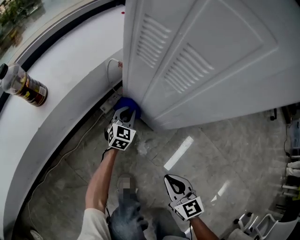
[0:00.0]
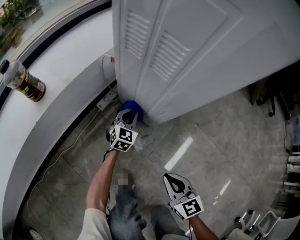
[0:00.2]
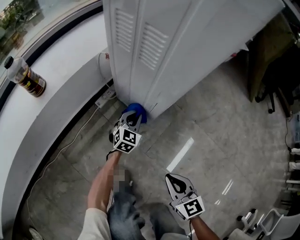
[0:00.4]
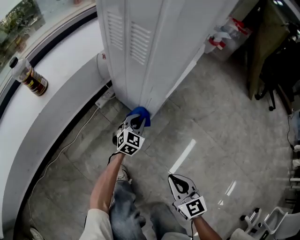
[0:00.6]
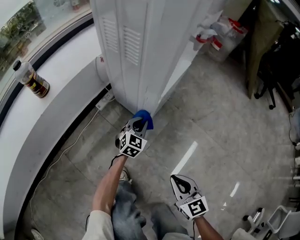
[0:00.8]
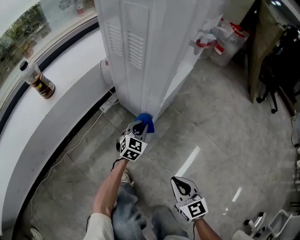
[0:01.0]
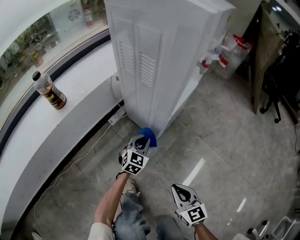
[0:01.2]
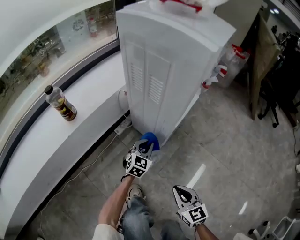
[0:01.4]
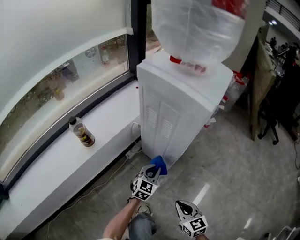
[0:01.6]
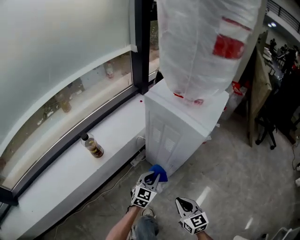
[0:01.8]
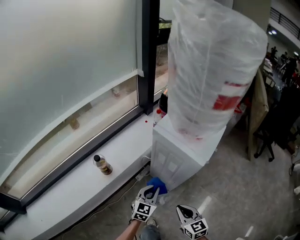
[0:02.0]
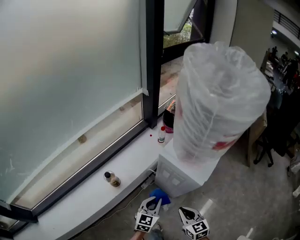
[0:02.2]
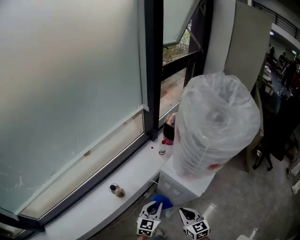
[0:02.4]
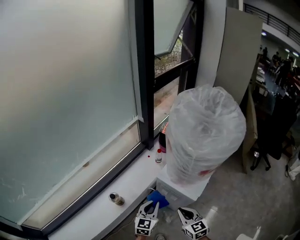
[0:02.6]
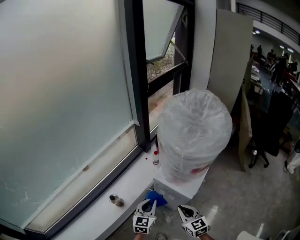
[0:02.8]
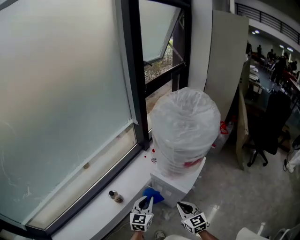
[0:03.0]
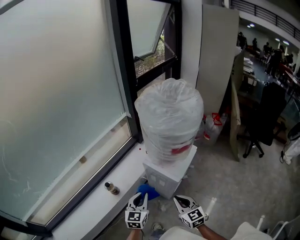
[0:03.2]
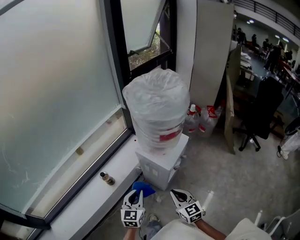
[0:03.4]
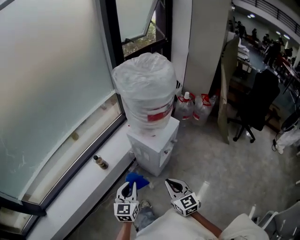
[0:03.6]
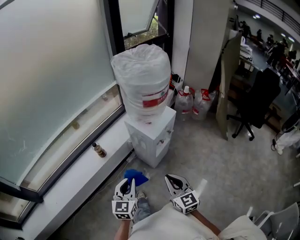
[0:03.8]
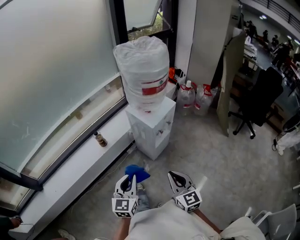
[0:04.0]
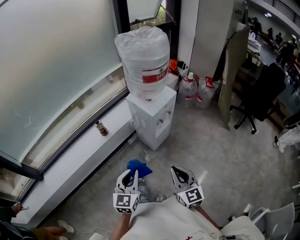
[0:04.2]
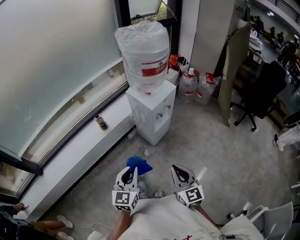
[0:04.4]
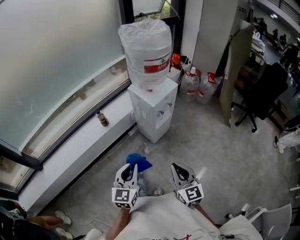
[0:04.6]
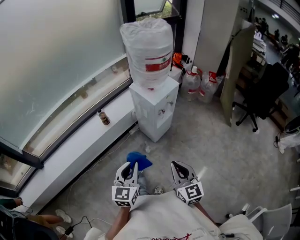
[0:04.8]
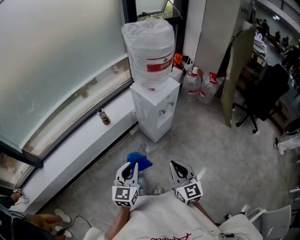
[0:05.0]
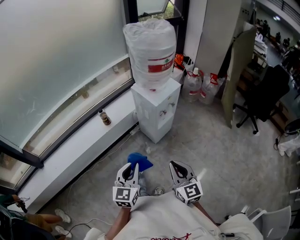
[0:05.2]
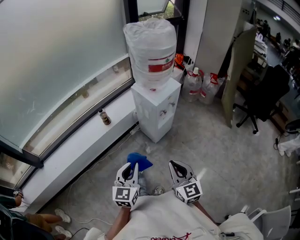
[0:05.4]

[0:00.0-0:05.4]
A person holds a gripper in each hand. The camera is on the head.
0:00.0 to 0:01.4: The left gripper is displaced backward, upward and to the right by roughly 20 cm; the right gripper shifts about 10 cm backward and upward.
0:01.4 to 0:02.8: The right gripper is displaced upward and forward by approximately 50 cm. Meanwhile the left gripper is displaced upward by some 60 cm, and turns by some 20 degrees.
0:02.8 to 0:04.0: The left gripper is displaced backward by some 35 cm. Meanwhile the right gripper is displaced backward and to the right by some 35 cm.
0:04.0 to 0:05.4: The two grippers go roughly 5 cm backward.

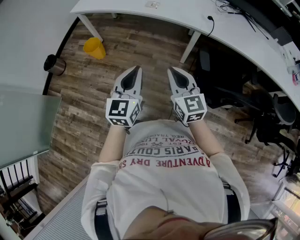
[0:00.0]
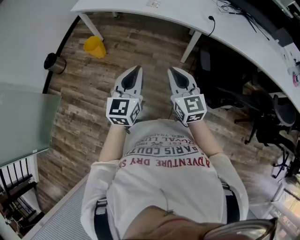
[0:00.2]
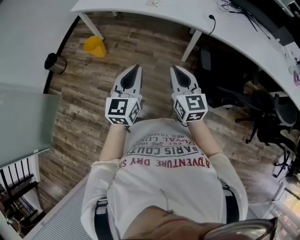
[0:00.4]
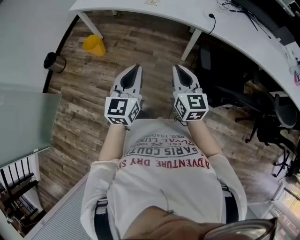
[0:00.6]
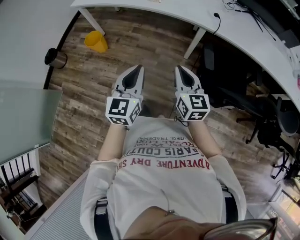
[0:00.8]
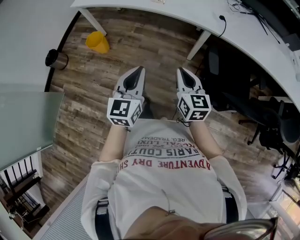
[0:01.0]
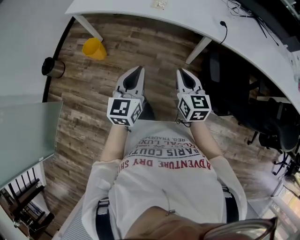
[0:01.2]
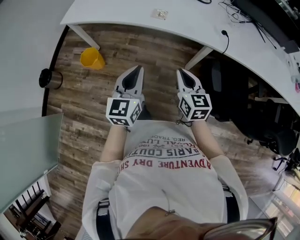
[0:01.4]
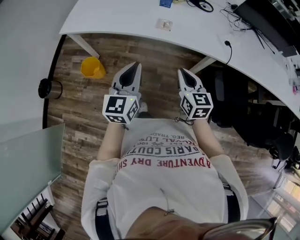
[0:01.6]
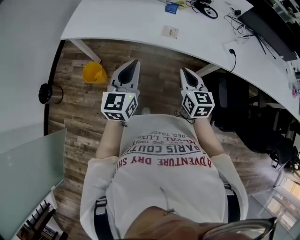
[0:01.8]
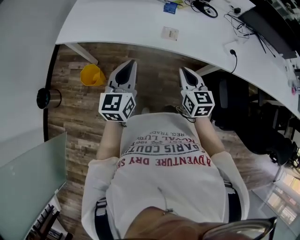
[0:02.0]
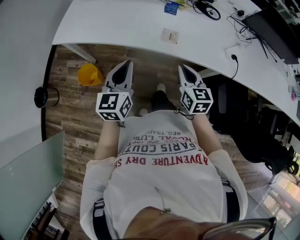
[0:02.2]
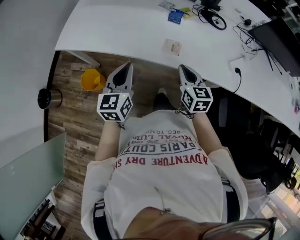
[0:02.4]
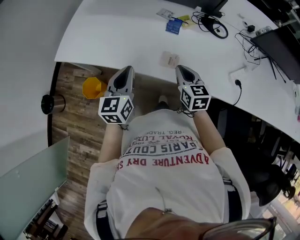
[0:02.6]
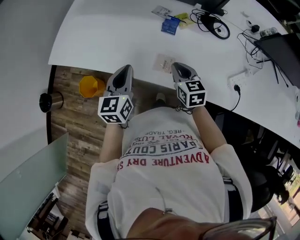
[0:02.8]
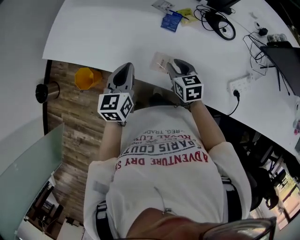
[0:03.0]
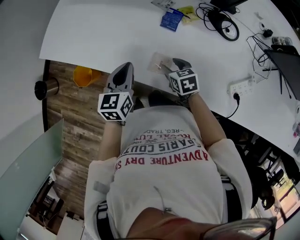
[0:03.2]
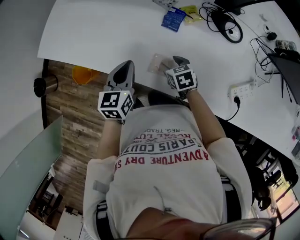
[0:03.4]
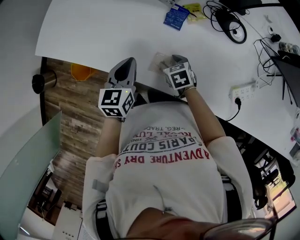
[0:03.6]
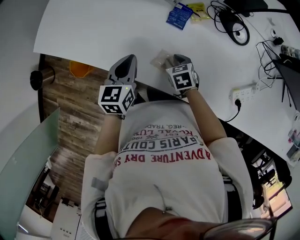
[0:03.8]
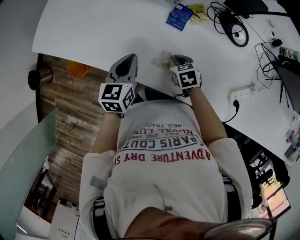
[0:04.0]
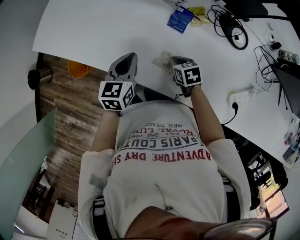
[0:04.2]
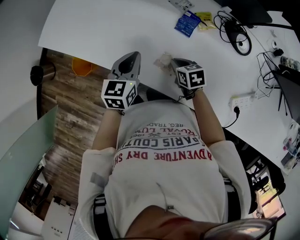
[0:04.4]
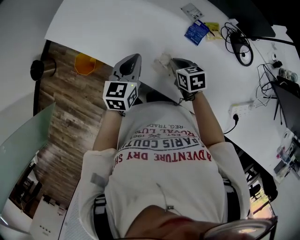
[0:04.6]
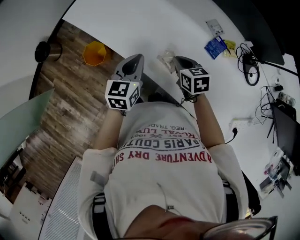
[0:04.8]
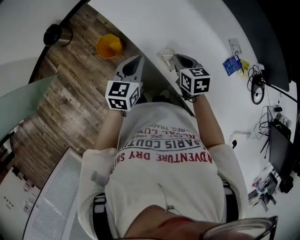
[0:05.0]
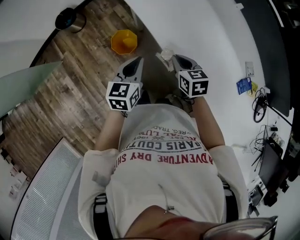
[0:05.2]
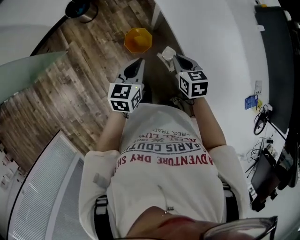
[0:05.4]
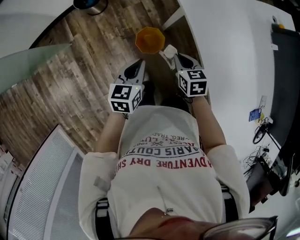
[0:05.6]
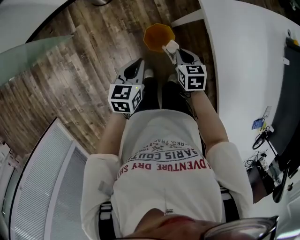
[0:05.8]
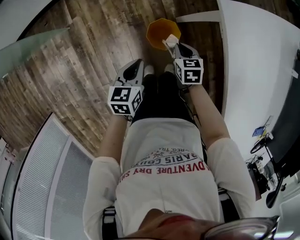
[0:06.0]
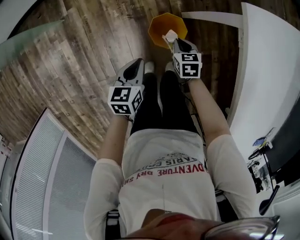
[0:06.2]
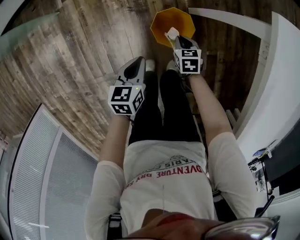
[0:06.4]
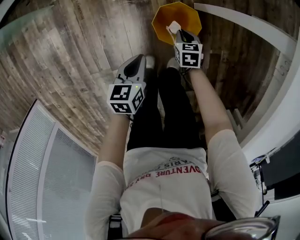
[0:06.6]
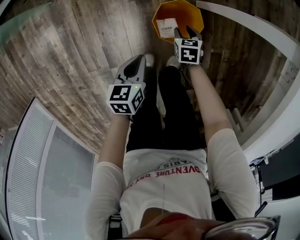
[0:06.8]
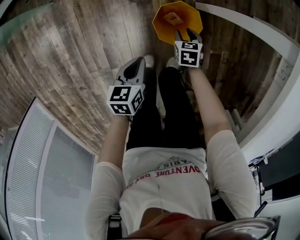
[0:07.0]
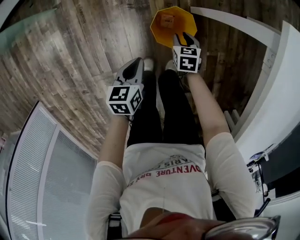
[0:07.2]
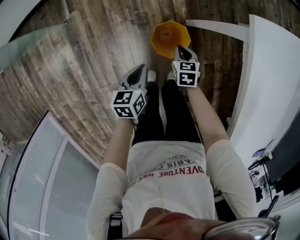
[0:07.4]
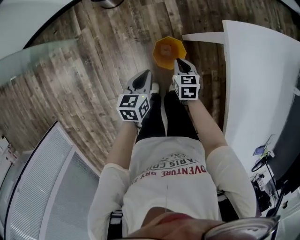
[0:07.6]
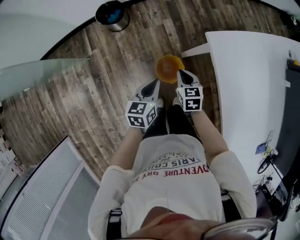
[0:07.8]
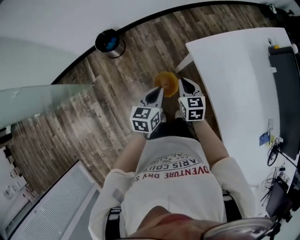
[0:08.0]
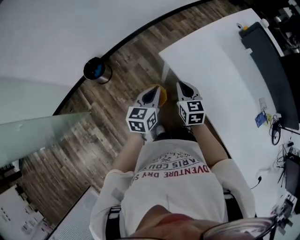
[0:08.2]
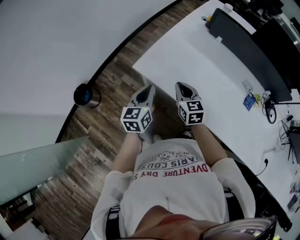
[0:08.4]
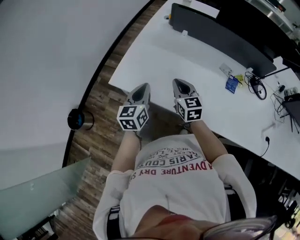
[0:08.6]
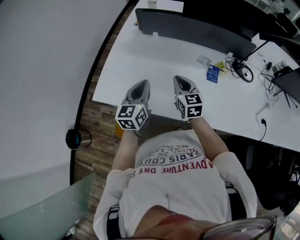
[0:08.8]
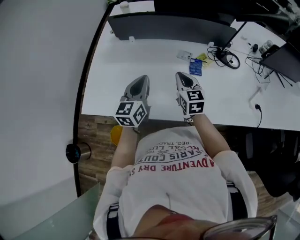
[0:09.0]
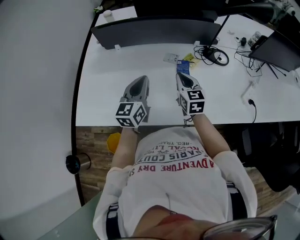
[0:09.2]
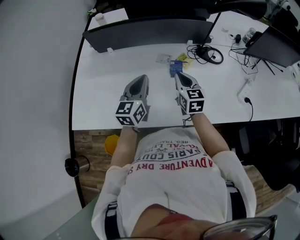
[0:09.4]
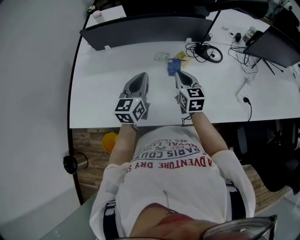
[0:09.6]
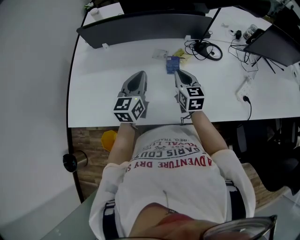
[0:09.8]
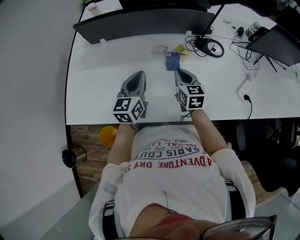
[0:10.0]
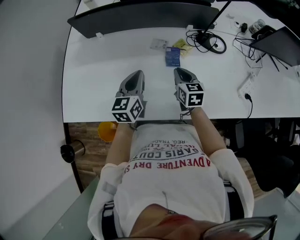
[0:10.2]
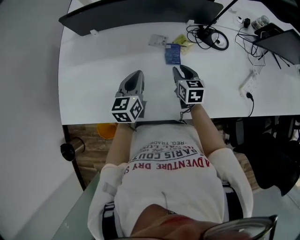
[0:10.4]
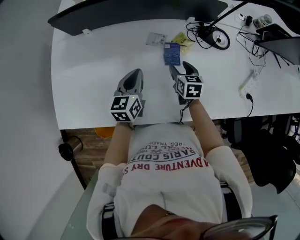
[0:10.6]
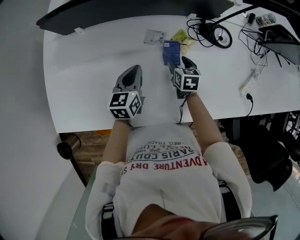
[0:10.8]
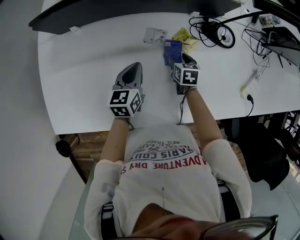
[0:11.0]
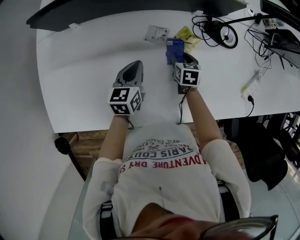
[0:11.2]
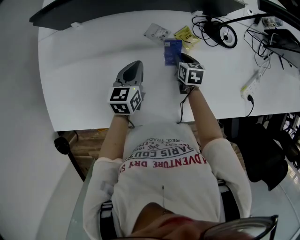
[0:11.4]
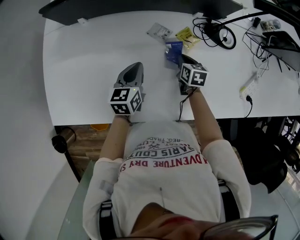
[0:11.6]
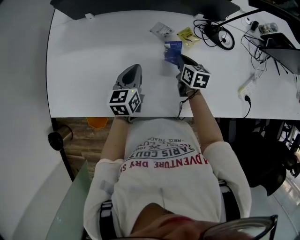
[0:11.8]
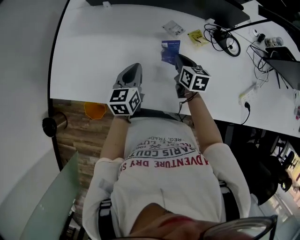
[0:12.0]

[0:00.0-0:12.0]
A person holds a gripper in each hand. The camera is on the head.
0:00.0 to 0:01.6: The right gripper is displaced forward by some 30 cm, and changes its angle by roughly 20 degrees; the left gripper travels forward and to the left by approximately 35 cm.
0:01.6 to 0:03.0: The two grippers go approximately 40 cm forward. The left gripper rotates approximately 20 degrees. Meanwhile the right gripper turns by approximately 30 degrees.
0:03.0 to 0:04.4: The right gripper is displaced downward and forward by some 10 cm, rotates roughly 20 degrees, and opens and closes again. Meanwhile the left gripper moves forward and downward, some 10 cm.
0:04.4 to 0:06.0: Both grippers are carried roughly 70 cm. The right gripper rolls counterclockwise, seen from behind, by some 40 degrees; the left gripper rotates some 50 degrees.
0:06.0 to 0:07.6: The left gripper travels downward and back again, approximately 25 cm each way; the right gripper goes downward and returns, roughly 35 cm each way, and opens, then closes once more.
0:07.6 to 0:09.0: Both grippers are carried about 60 cm. The left gripper tilts its fingers approximately 30 degrees upward. Meanwhile the right gripper tilts its fingers roughly 40 degrees upward.
0:09.0 to 0:10.4: The grippers both shift to the right, downward and forward by approximately 20 cm. The right gripper swivels some 20 degrees.
0:10.4 to 0:12.0: Both grippers travel together to the left, approximately 5 cm. The right gripper moves some 15 cm downward and comes back, and opens, then closes again; the left gripper travels forward and back again, roughly 10 cm each way.

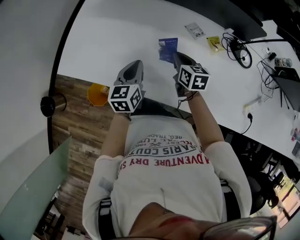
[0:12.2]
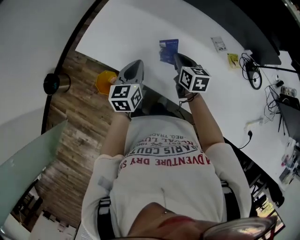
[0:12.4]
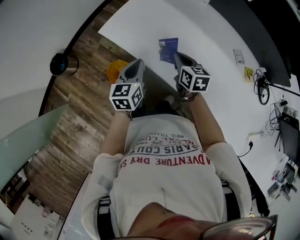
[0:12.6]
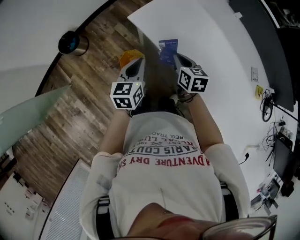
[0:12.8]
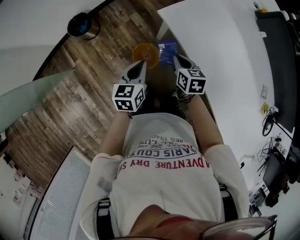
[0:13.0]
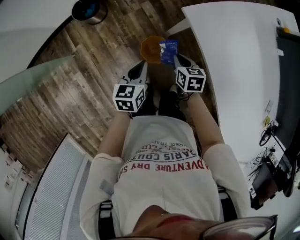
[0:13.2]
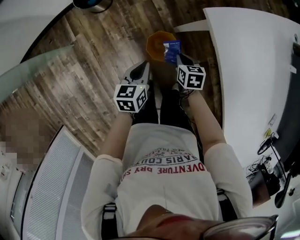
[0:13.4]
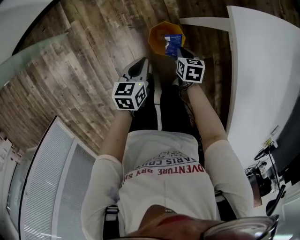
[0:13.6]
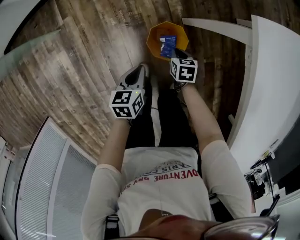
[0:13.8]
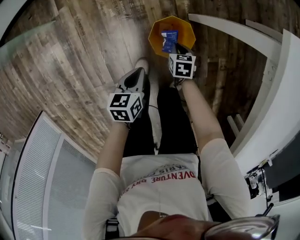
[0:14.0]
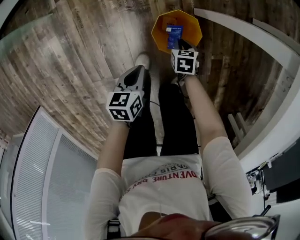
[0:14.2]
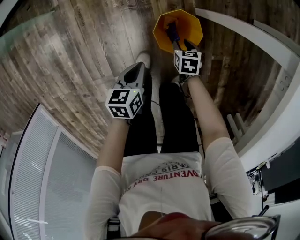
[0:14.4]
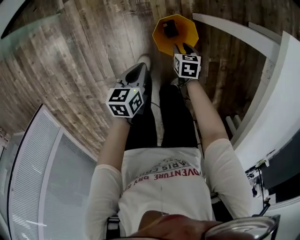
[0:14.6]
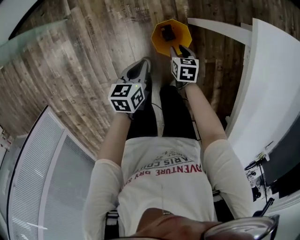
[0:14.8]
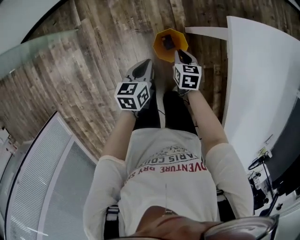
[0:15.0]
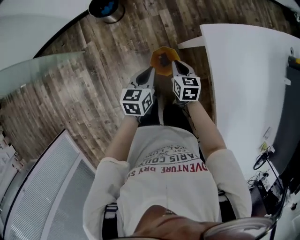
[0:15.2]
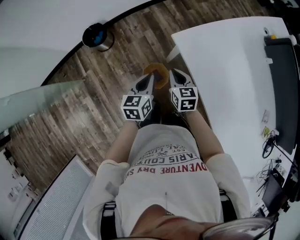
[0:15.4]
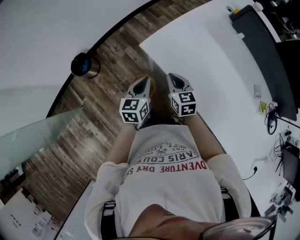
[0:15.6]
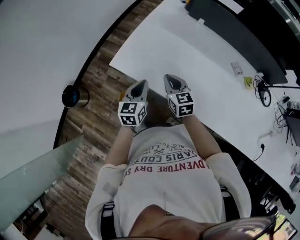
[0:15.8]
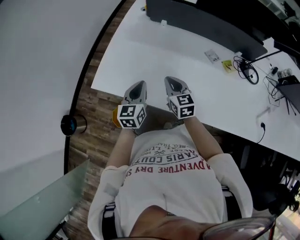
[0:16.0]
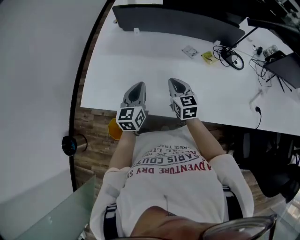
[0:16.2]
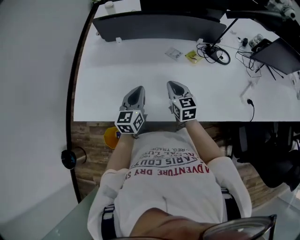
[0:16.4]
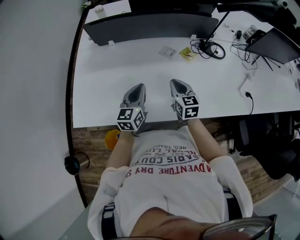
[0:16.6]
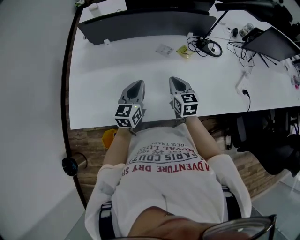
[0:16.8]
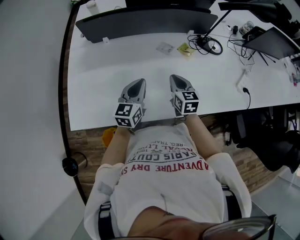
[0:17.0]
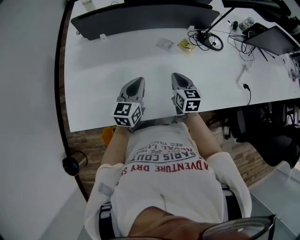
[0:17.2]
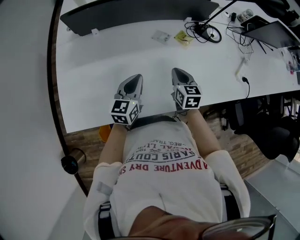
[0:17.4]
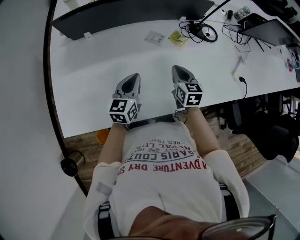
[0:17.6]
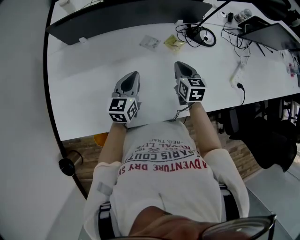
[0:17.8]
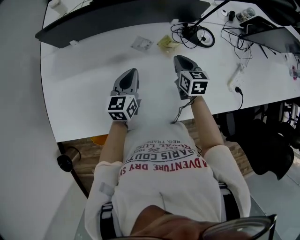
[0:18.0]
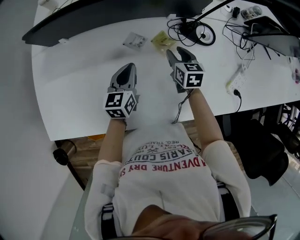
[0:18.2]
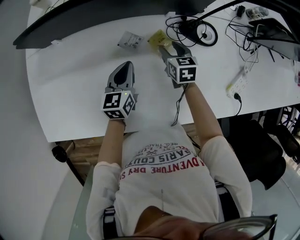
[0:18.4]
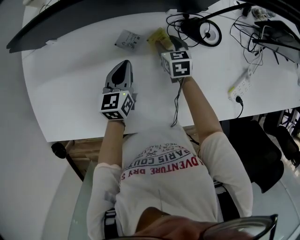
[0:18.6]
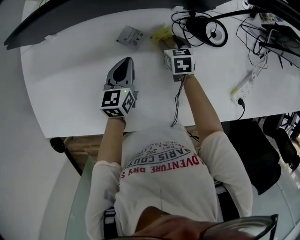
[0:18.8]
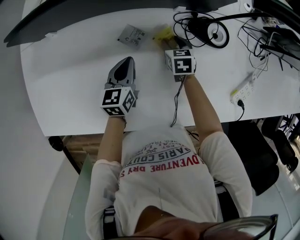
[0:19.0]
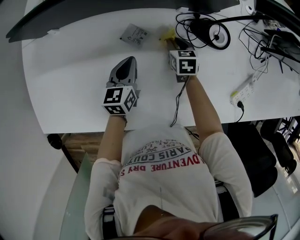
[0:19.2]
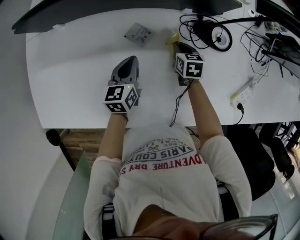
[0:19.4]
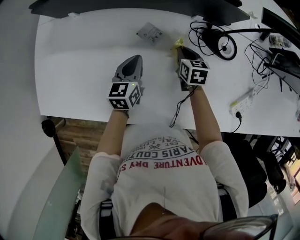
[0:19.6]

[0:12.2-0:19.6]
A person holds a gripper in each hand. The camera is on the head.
0:12.2 to 0:13.6: The two grippers travel together, approximately 60 cm. The right gripper turns by some 60 degrees. The left gripper changes its angle by approximately 60 degrees.
0:13.6 to 0:15.2: The two grippers go about 15 cm upward. The right gripper opens, then closes once more.
0:15.2 to 0:16.6: The pair of grippers is taken approximately 60 cm. The right gripper swivels approximately 80 degrees, while the left gripper turns by some 80 degrees.
0:16.6 to 0:18.2: The right gripper goes roughly 25 cm forward and to the right, and opens its fingers. Meanwhile the left gripper heads forward, to the right and downward, covering some 25 cm.
0:18.2 to 0:19.6: The left gripper travels downward by about 5 cm. The right gripper is displaced downward by roughly 10 cm, and closes.
